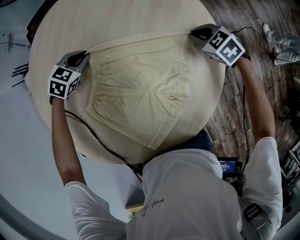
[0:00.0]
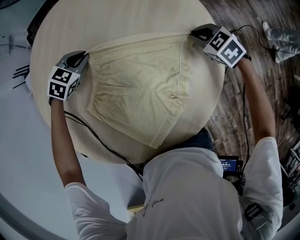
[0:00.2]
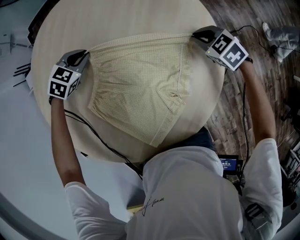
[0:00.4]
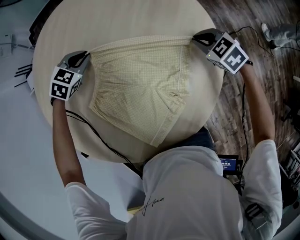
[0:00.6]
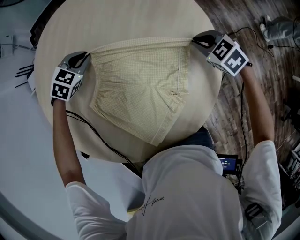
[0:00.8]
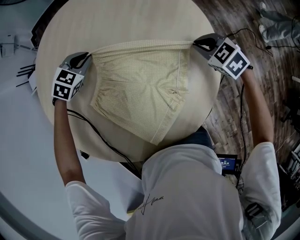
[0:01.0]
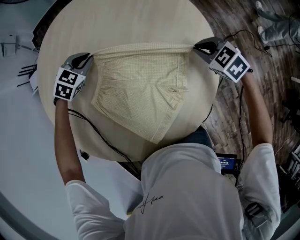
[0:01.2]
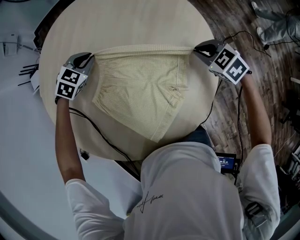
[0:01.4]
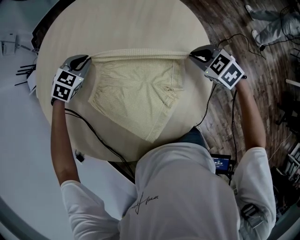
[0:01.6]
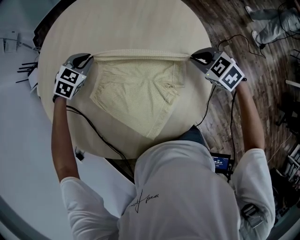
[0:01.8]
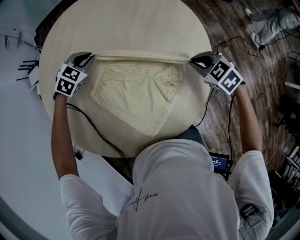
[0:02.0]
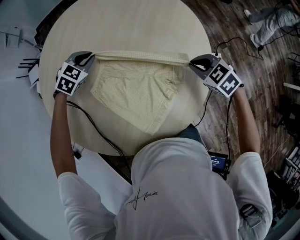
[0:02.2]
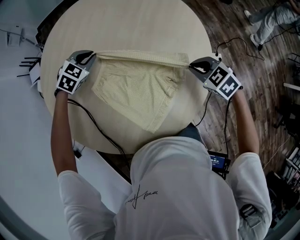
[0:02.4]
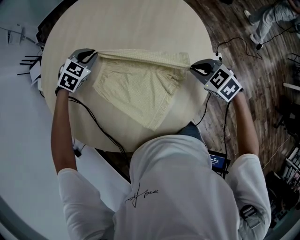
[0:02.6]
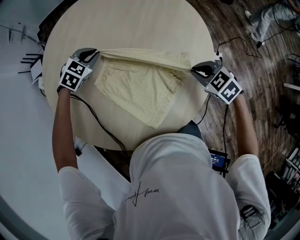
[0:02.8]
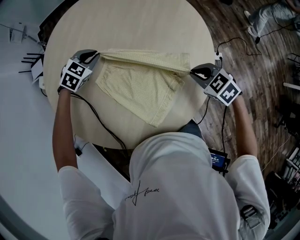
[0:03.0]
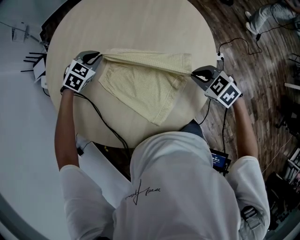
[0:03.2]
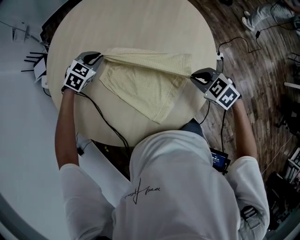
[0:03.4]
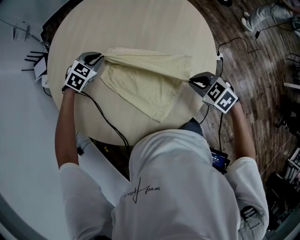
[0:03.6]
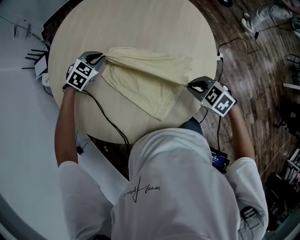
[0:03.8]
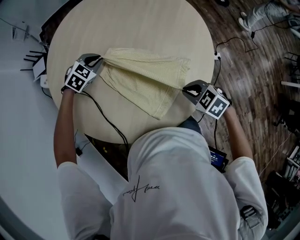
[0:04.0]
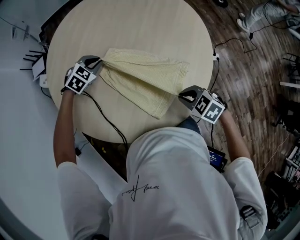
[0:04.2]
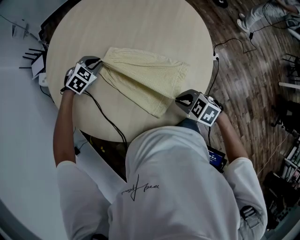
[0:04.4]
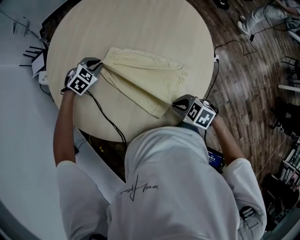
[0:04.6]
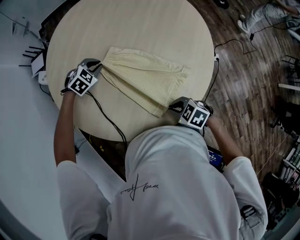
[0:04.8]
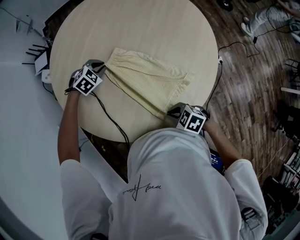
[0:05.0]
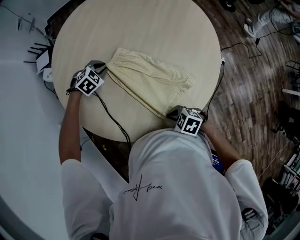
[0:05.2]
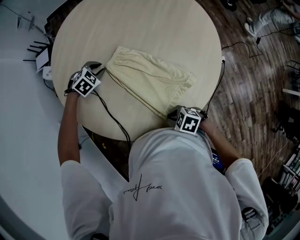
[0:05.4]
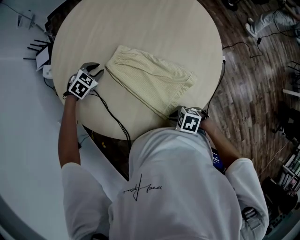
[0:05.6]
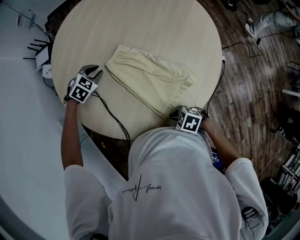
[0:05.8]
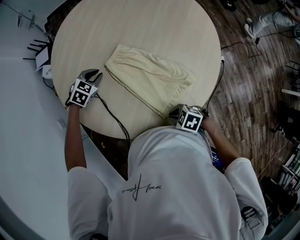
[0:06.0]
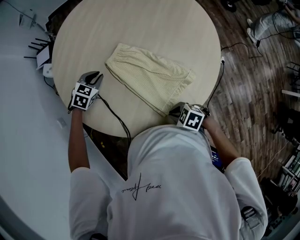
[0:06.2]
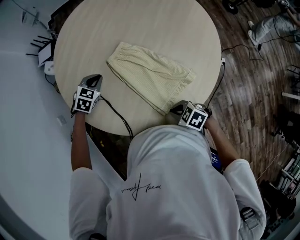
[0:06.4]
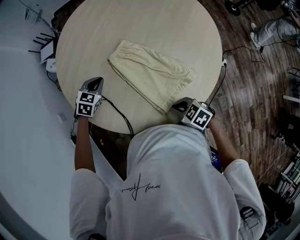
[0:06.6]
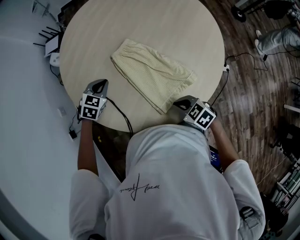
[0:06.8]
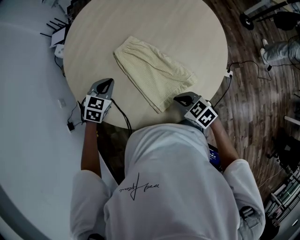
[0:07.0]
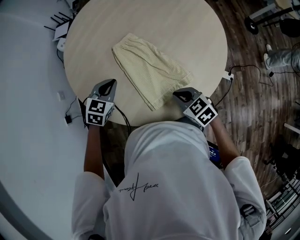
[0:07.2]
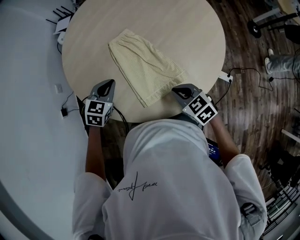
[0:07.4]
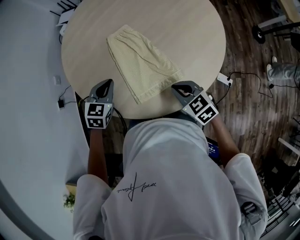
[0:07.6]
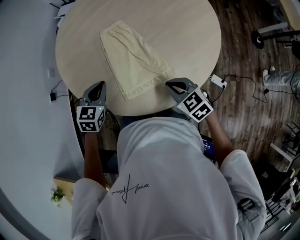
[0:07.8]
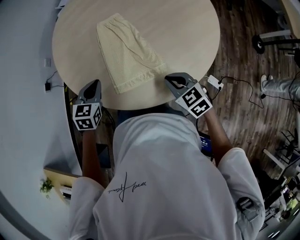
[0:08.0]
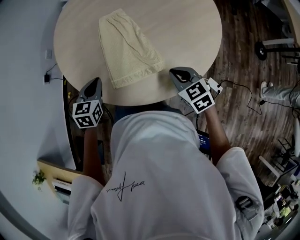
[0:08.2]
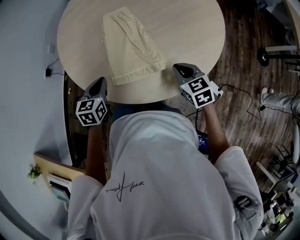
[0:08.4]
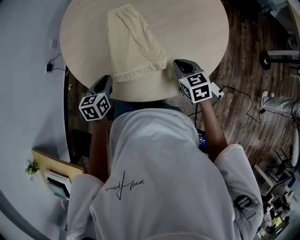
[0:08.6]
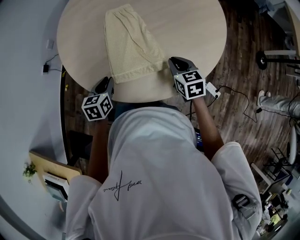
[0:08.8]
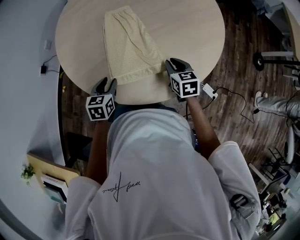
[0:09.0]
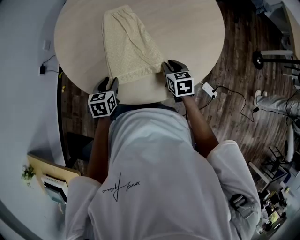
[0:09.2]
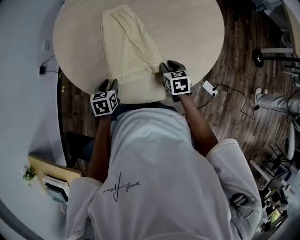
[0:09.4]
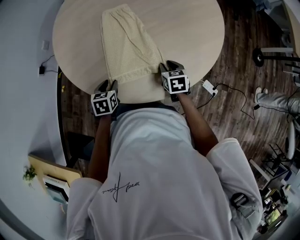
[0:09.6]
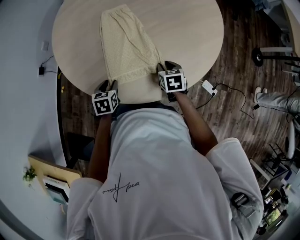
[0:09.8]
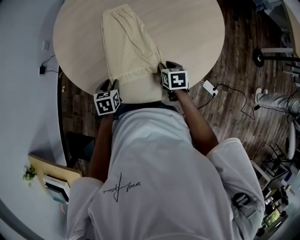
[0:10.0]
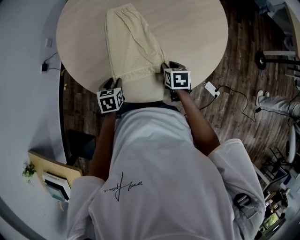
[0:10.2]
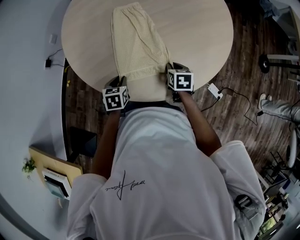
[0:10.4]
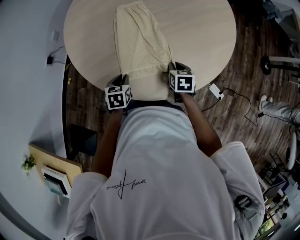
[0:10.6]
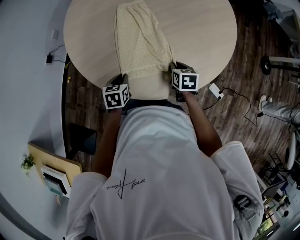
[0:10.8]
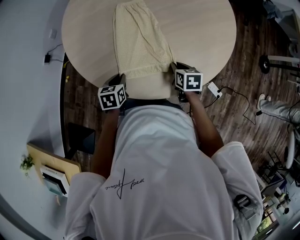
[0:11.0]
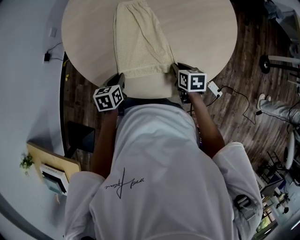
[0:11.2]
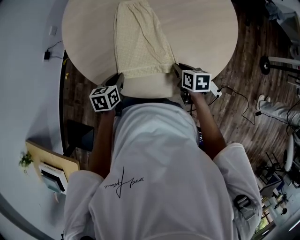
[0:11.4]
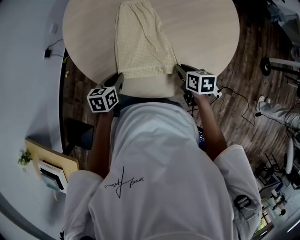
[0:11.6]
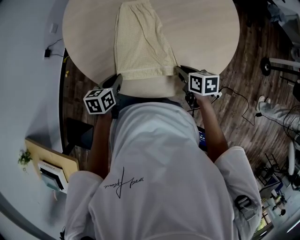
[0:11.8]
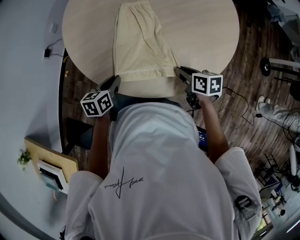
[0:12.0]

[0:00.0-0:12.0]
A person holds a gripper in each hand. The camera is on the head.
0.0 to 1.6 s: The left gripper shifts approximately 5 cm upward. Meanwhile the right gripper heads backward and upward, covering some 15 cm.
1.6 to 3.0 s: The right gripper shifts approximately 15 cm backward and to the left. Meanwhile the left gripper shifts roughly 5 cm backward.
3.0 to 4.4 s: The left gripper travels backward by some 5 cm, while the right gripper heads backward and to the left, covering some 20 cm.
4.4 to 6.0 s: The left gripper shifts by approximately 10 cm, while the right gripper ends up about 10 cm from where it was.
6.0 to 7.6 s: The left gripper changes place by roughly 25 cm, and rotates approximately 40 degrees, while the right gripper changes place by some 20 cm, and changes its angle by approximately 30 degrees.
7.6 to 9.0 s: The right gripper moves to the right, downward and forward, approximately 15 cm. Meanwhile the left gripper heads backward and downward, covering about 15 cm, swivels roughly 30 degrees, and opens.
9.0 to 10.4 s: Both grippers move downward, approximately 5 cm.
10.4 to 12.0 s: The two grippers go approximately 5 cm upward. The left gripper turns by about 20 degrees, while the right gripper turns by about 20 degrees.

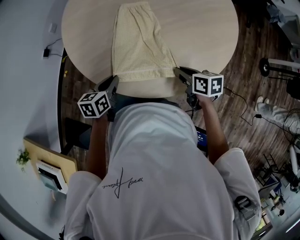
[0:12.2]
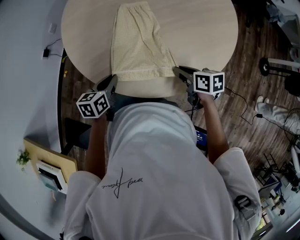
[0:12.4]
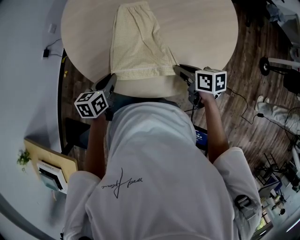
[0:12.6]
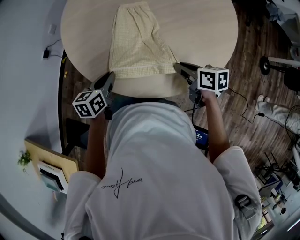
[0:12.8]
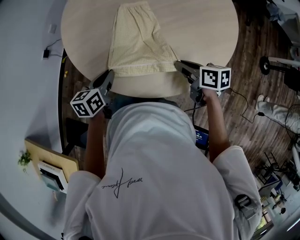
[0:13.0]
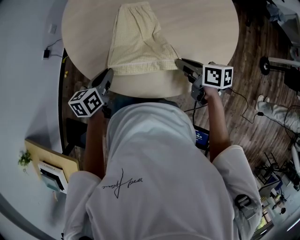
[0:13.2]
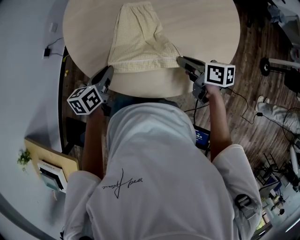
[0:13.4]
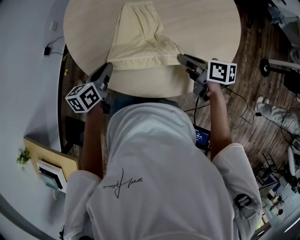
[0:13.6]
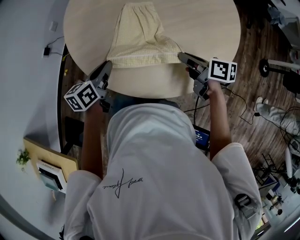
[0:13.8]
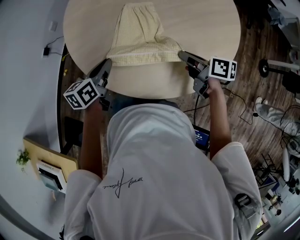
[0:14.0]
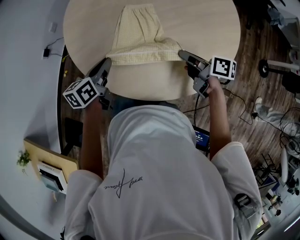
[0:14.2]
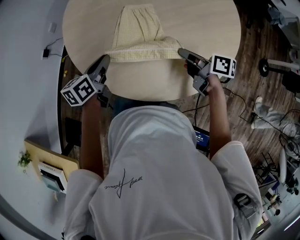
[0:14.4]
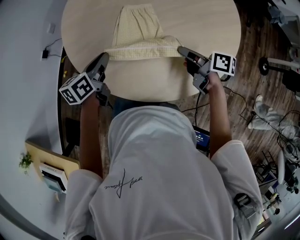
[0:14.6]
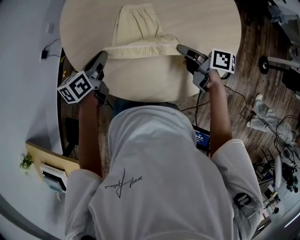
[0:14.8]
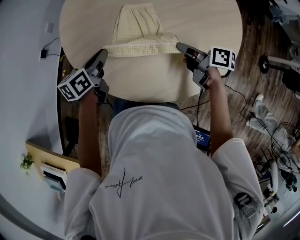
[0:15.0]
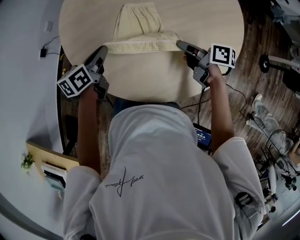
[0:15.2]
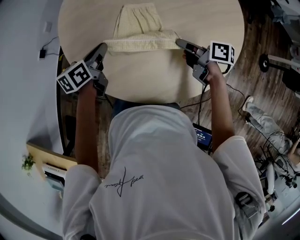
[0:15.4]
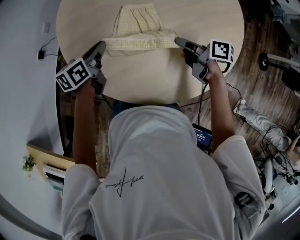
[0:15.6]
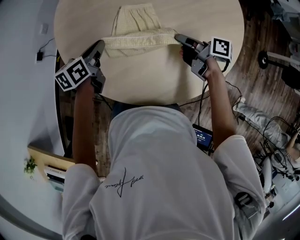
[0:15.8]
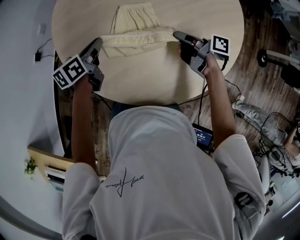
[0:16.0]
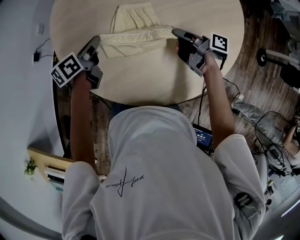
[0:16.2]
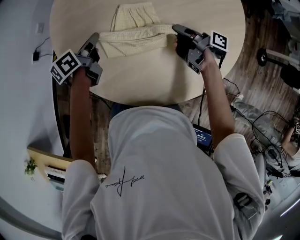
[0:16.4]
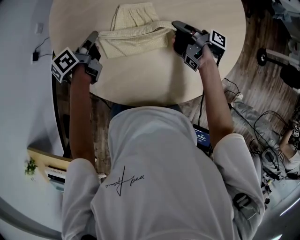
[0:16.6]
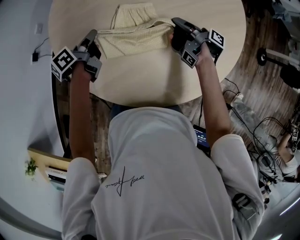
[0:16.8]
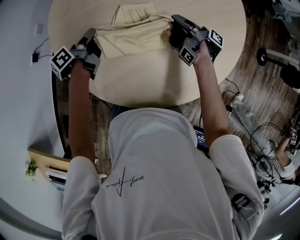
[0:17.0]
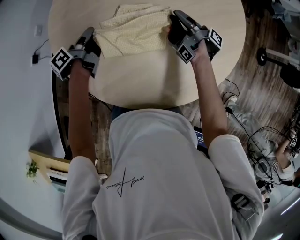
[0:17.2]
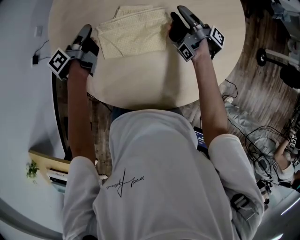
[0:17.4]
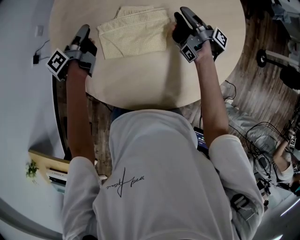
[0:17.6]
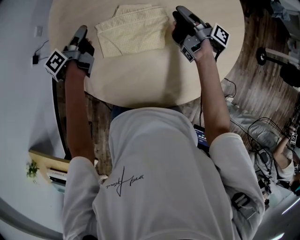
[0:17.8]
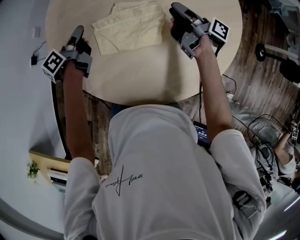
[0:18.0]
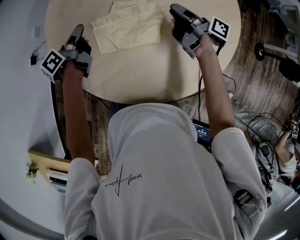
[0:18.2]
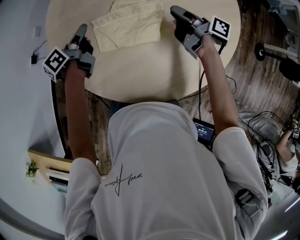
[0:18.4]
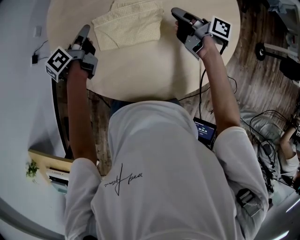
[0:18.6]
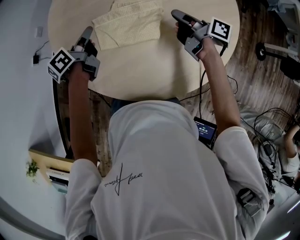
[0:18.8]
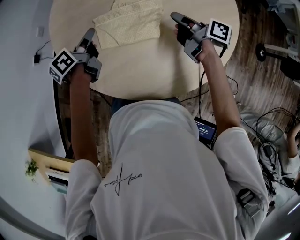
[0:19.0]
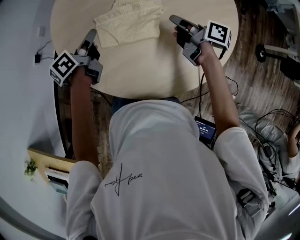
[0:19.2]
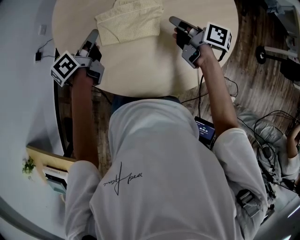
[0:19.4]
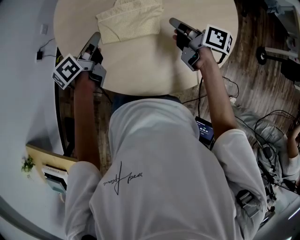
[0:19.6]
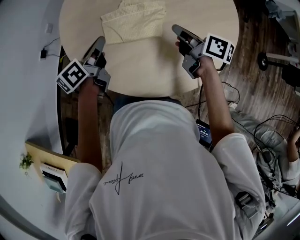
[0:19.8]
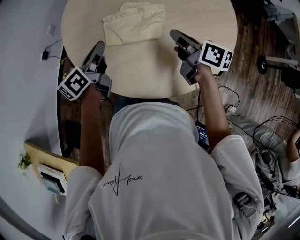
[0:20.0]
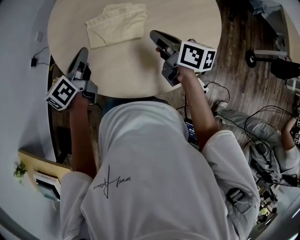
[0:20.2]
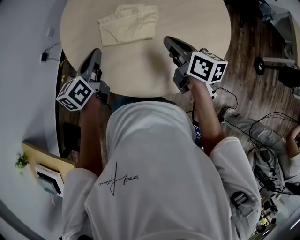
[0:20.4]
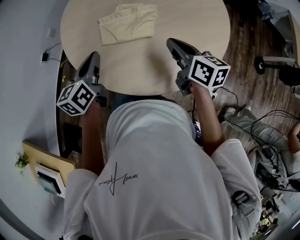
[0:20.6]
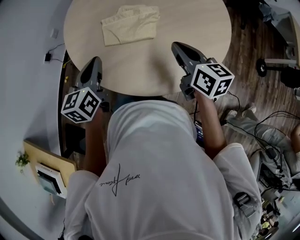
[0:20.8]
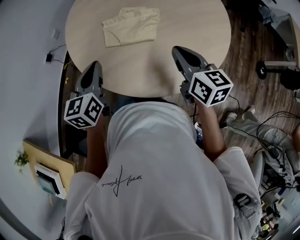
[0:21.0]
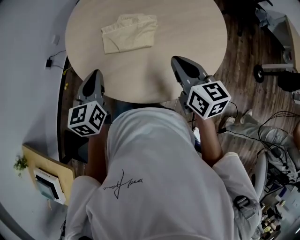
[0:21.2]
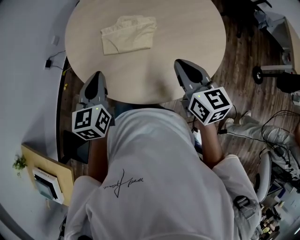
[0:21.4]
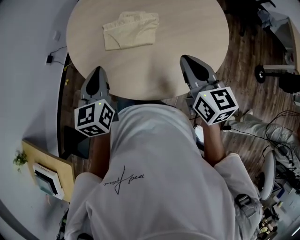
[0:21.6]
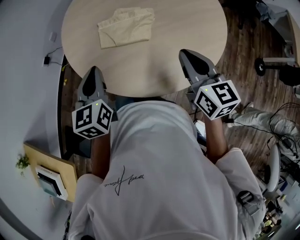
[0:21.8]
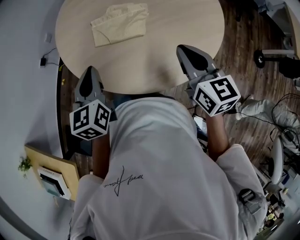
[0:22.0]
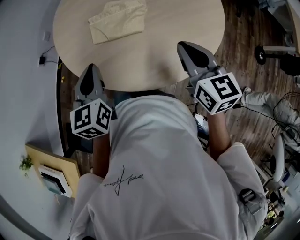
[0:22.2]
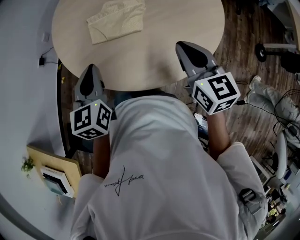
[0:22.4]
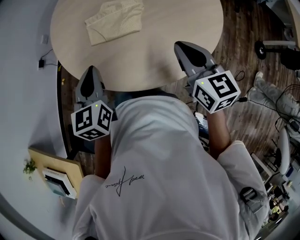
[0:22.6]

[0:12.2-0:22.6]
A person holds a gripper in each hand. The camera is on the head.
12.2 to 13.6 s: The left gripper is displaced upward and forward by roughly 10 cm; the right gripper goes approximately 5 cm upward.
13.6 to 15.2 s: The two grippers go some 10 cm forward.
15.2 to 16.6 s: The left gripper is displaced forward and downward by approximately 15 cm, and changes its angle by about 20 degrees, while the right gripper goes approximately 15 cm forward, and rotates some 40 degrees.
16.6 to 18.2 s: The right gripper shifts approximately 5 cm upward, swivels about 20 degrees, and opens up.
18.2 to 19.6 s: The right gripper shifts approximately 10 cm backward, changes its angle by approximately 20 degrees, and closes, while the left gripper goes roughly 10 cm backward, upward and to the right.
19.6 to 21.2 s: The grippers both shift backward and upward by about 20 cm. The left gripper swivels some 40 degrees. Meanwhile the right gripper twists some 40 degrees counterclockwise, seen from behind.
21.2 to 22.6 s: There are only small adjustments of the grippers.

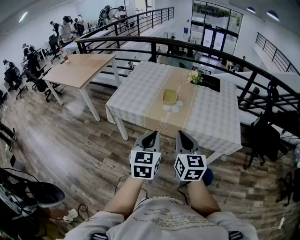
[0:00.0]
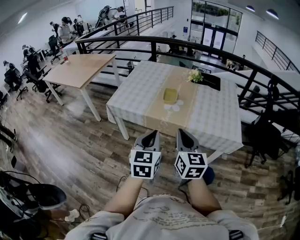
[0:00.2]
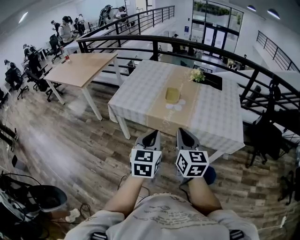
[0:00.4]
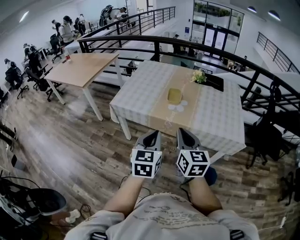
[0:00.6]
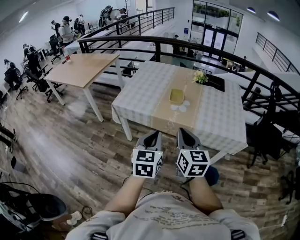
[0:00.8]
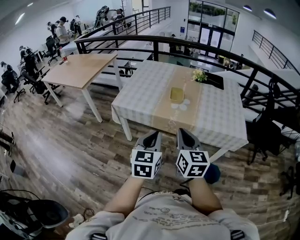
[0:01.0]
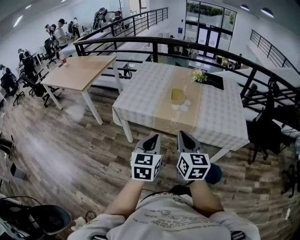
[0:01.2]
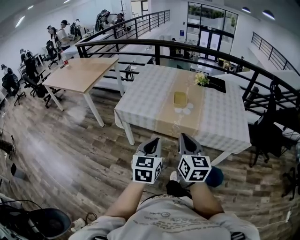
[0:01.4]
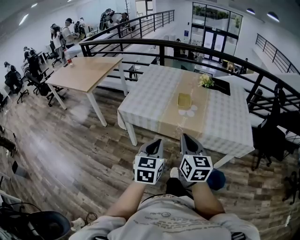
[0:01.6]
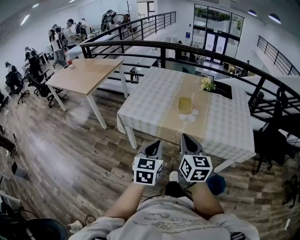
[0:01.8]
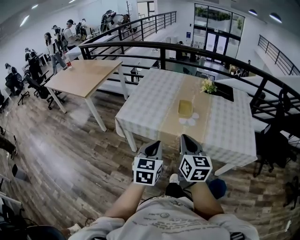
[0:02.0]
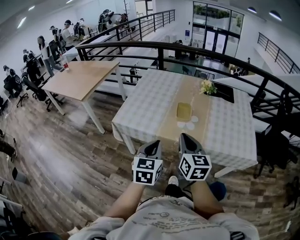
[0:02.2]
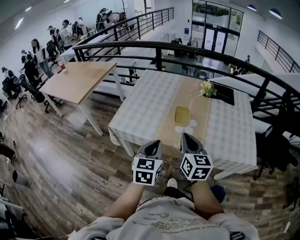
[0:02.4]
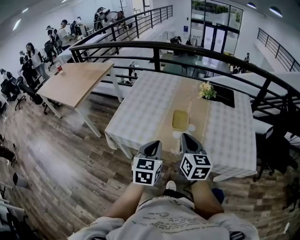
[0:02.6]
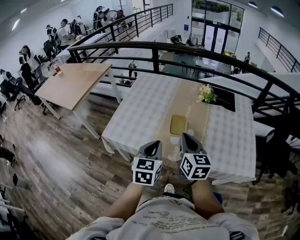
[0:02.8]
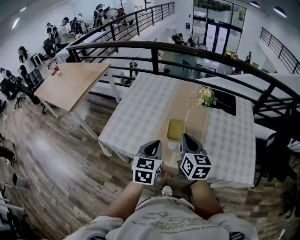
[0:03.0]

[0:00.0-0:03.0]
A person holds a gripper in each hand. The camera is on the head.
0.0 to 1.6 s: Both grippers move to the left, some 10 cm.
1.6 to 3.0 s: The two grippers go about 35 cm forward.
